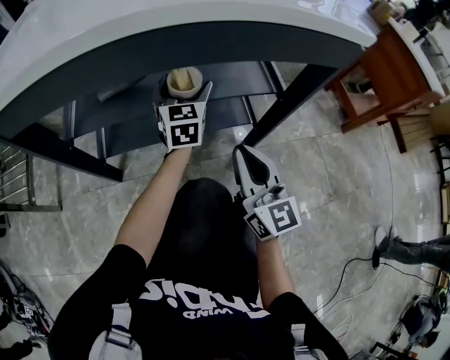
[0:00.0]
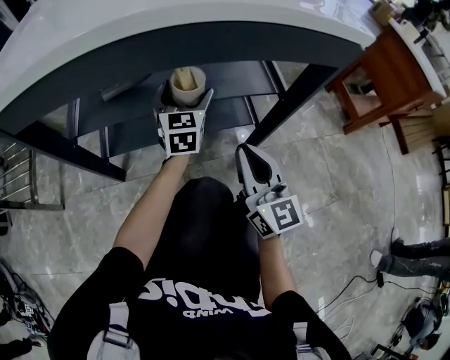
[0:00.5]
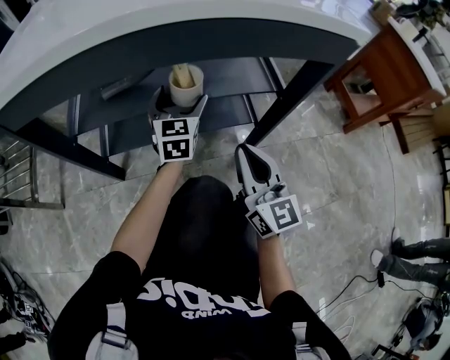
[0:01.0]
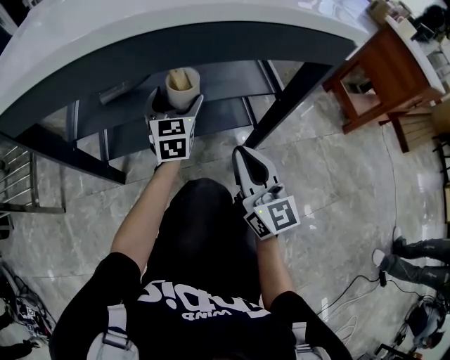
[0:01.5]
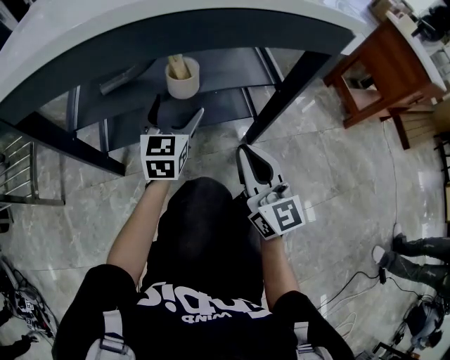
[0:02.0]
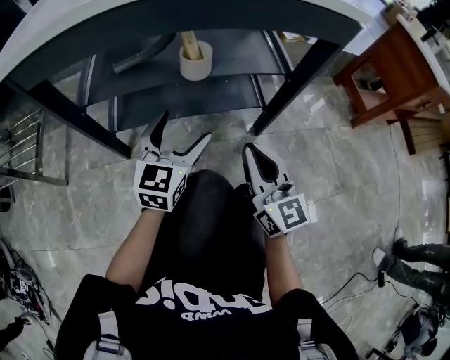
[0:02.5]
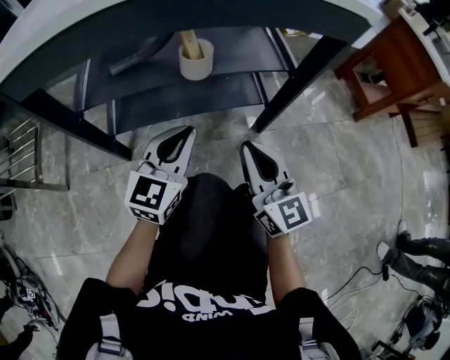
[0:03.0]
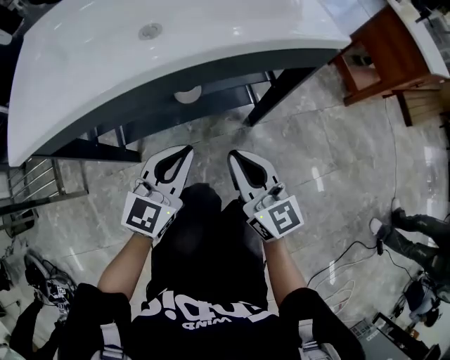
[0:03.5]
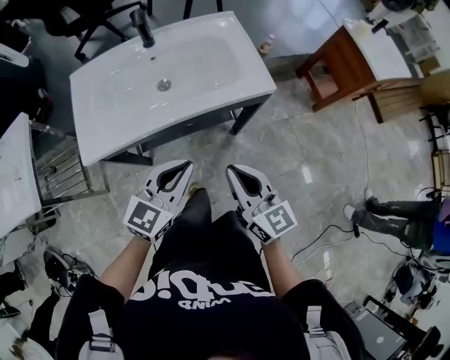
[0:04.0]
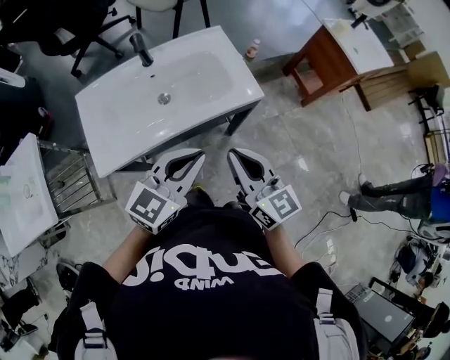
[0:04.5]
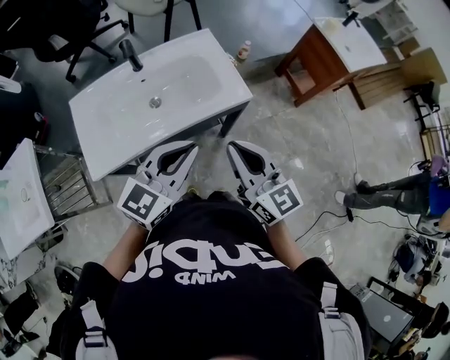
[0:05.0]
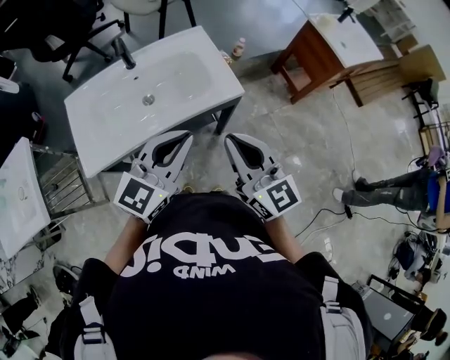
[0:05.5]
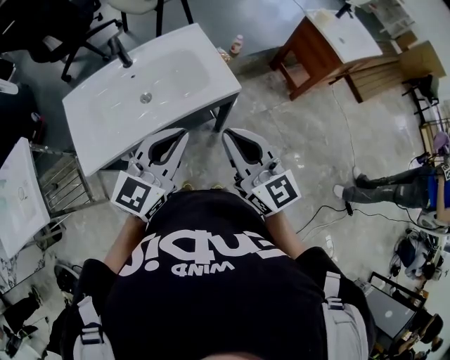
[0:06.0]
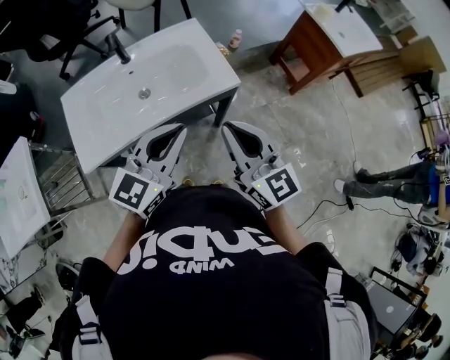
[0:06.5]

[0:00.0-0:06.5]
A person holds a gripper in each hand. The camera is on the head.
0:00.0 to 0:02.0: The left gripper travels backward by about 10 cm.
0:02.0 to 0:04.5: Both grippers move upward, some 50 cm. The left gripper turns by approximately 40 degrees, and closes its fingers.
0:04.5 to 0:06.5: The left gripper ends up about 5 cm from where it was, while the right gripper heads to the right, covering some 5 cm.

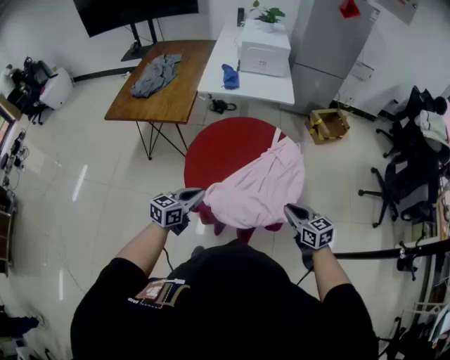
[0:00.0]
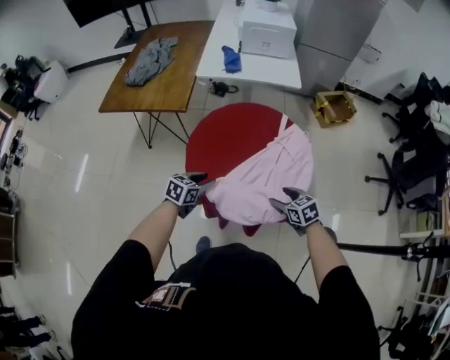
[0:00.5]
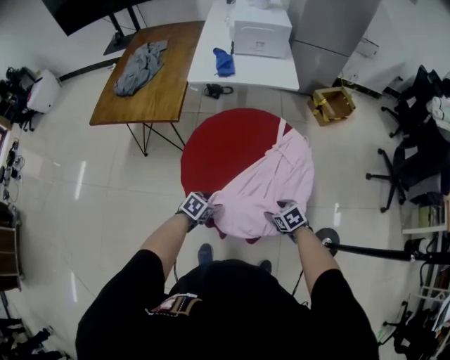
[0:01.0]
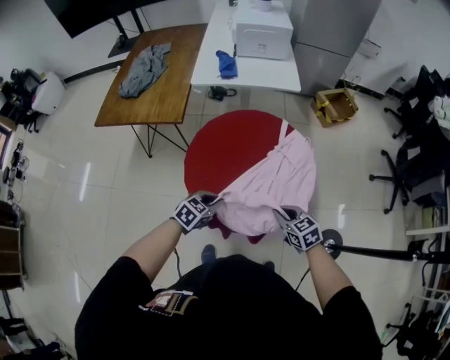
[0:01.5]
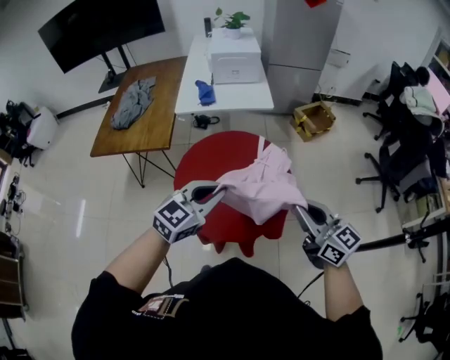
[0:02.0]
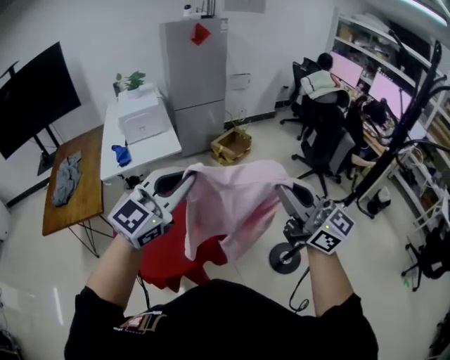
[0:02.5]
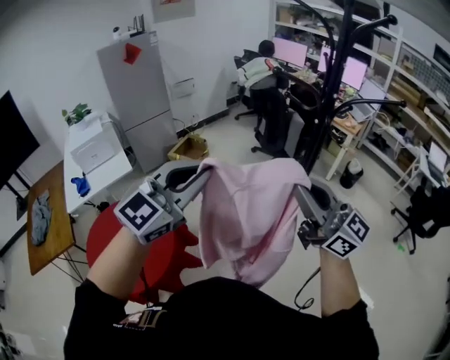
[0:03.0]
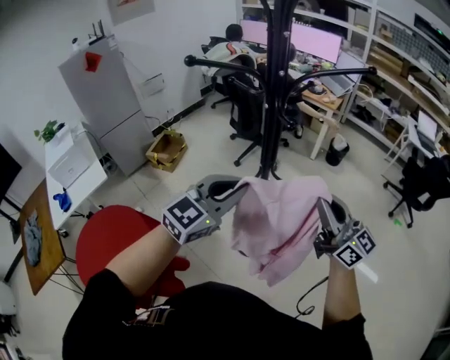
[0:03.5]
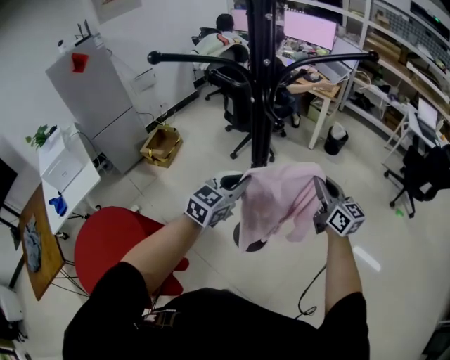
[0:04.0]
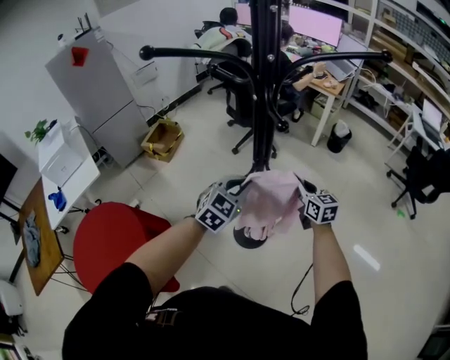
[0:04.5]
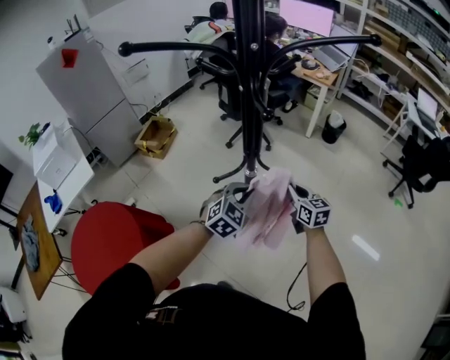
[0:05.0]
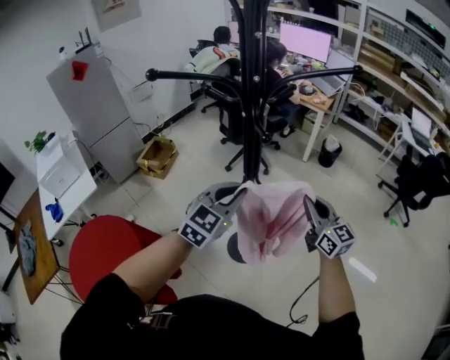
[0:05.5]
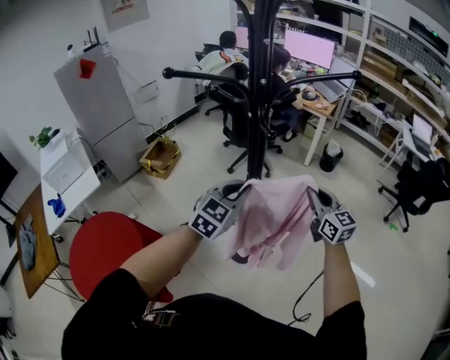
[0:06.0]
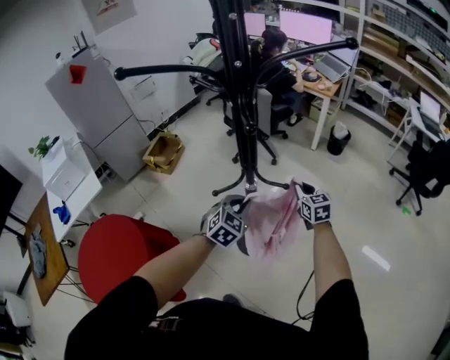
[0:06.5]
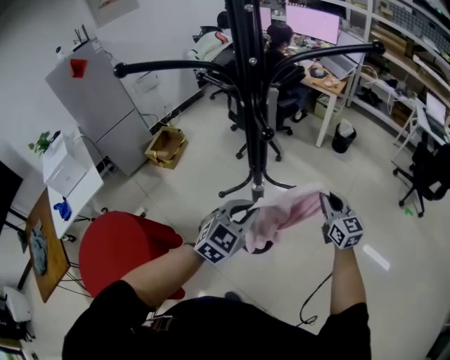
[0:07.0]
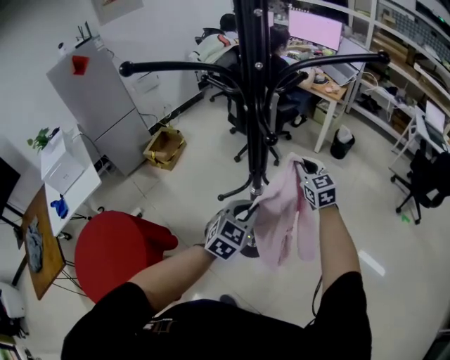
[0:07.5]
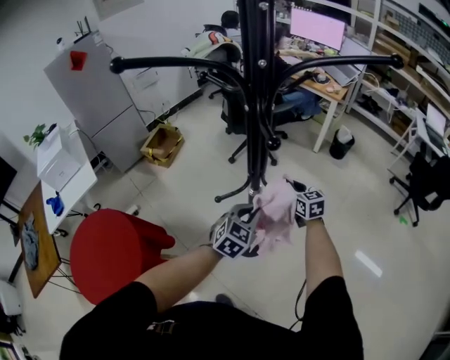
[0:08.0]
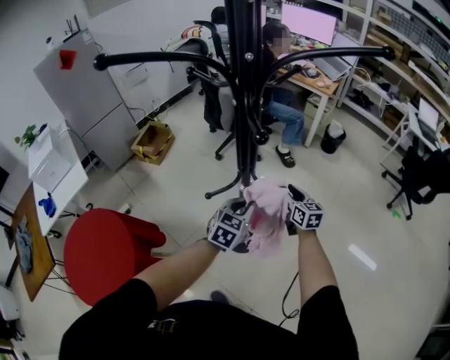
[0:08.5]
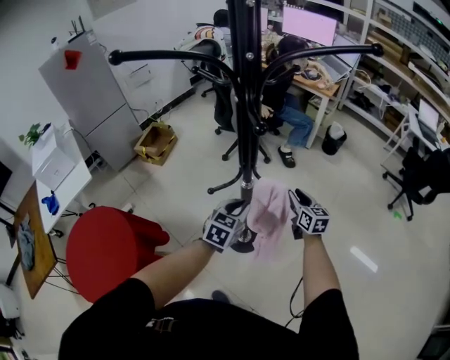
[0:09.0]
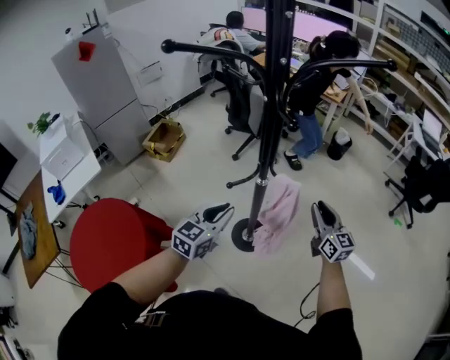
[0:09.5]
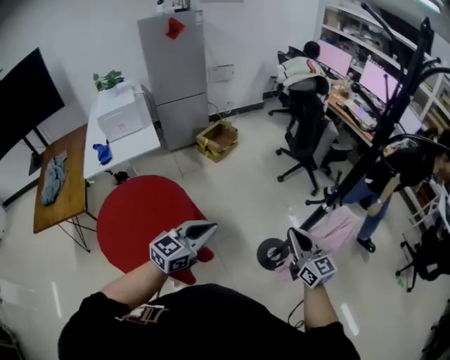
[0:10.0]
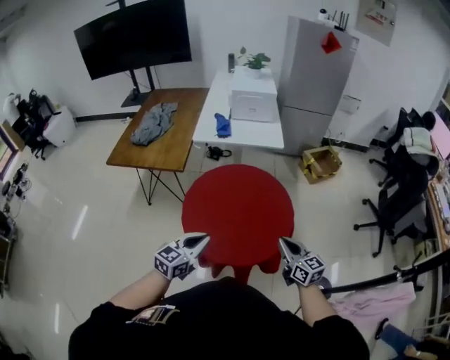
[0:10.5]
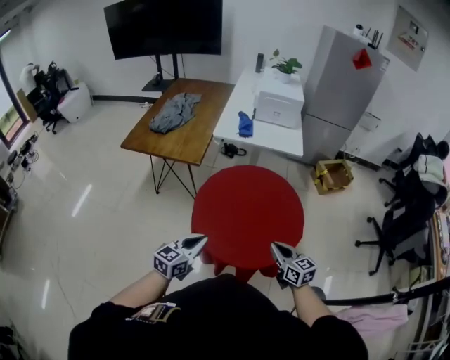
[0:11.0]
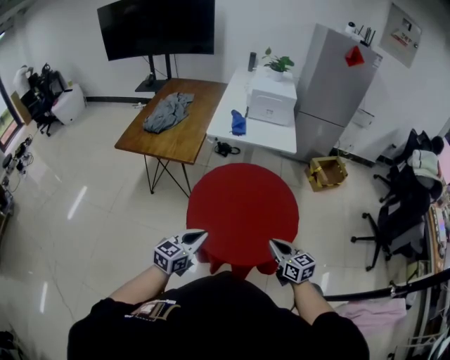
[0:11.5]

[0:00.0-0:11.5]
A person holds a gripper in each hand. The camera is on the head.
0:00.0 to 0:02.0: The left gripper moves upward and to the right, approximately 20 cm, swivels roughly 30 degrees, and opens and closes again; the right gripper moves upward, roughly 20 cm, rotates approximately 30 degrees, and opens, then closes again.
0:02.0 to 0:04.0: Both grippers are carried approximately 70 cm. The right gripper swivels approximately 70 degrees. The left gripper swivels about 40 degrees.
0:04.0 to 0:06.0: The right gripper reaches about 15 cm downward, then returns; the left gripper travels downward and back again, approximately 10 cm each way.
0:06.0 to 0:07.5: The right gripper heads forward, downward and to the left, covering roughly 20 cm, and rotates approximately 20 degrees. Meanwhile the left gripper heads downward, covering roughly 10 cm.
0:07.5 to 0:09.5: The right gripper heads backward and to the right, covering some 20 cm, and changes its angle by roughly 20 degrees. The left gripper is displaced to the left and backward by roughly 10 cm.
0:09.5 to 0:11.5: The two grippers travel together, some 80 cm. The left gripper changes its angle by approximately 60 degrees. The right gripper changes its angle by roughly 80 degrees, and closes its fingers.

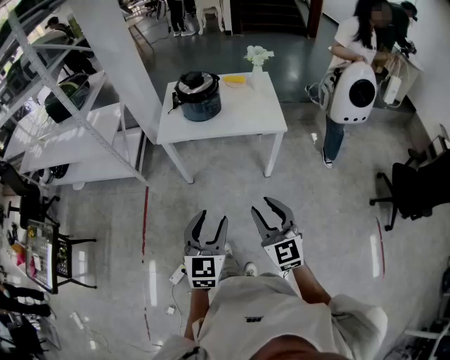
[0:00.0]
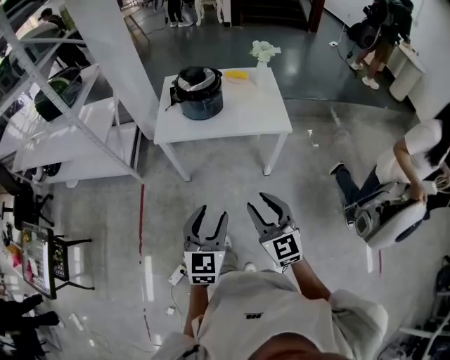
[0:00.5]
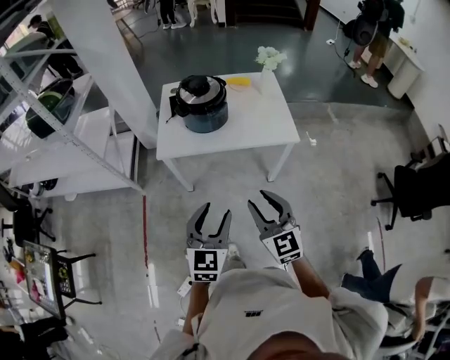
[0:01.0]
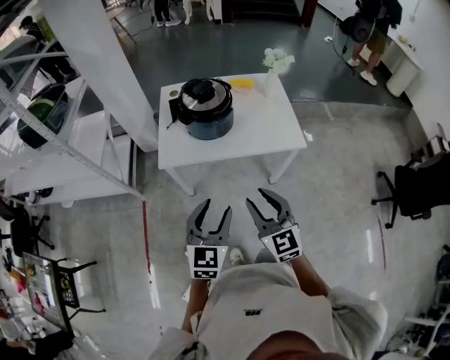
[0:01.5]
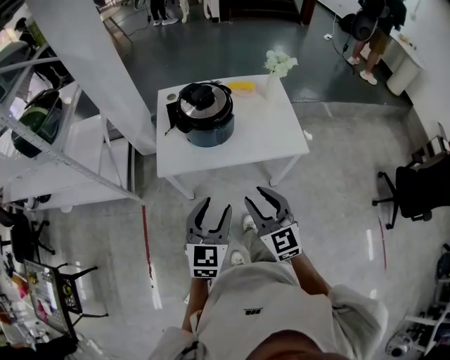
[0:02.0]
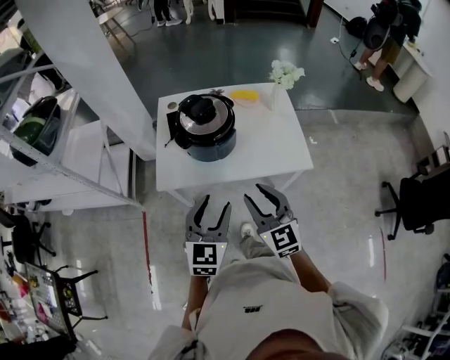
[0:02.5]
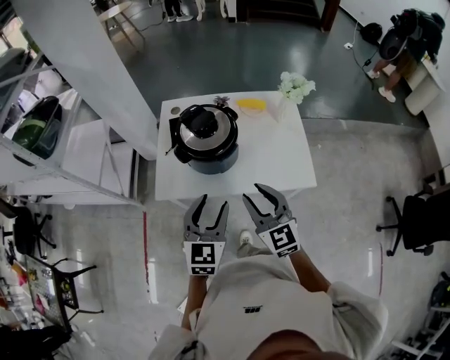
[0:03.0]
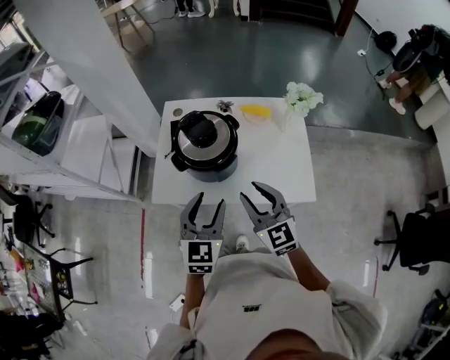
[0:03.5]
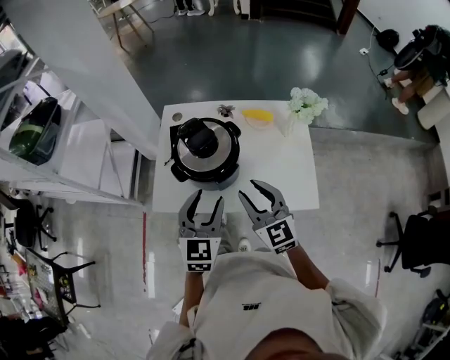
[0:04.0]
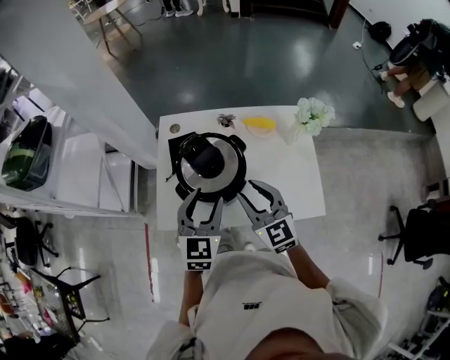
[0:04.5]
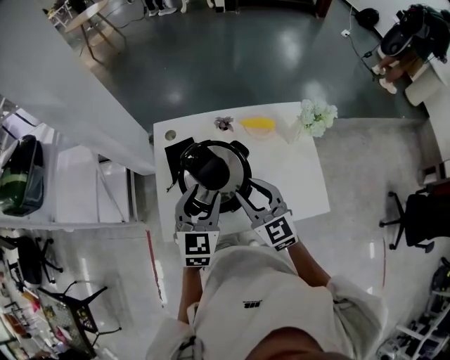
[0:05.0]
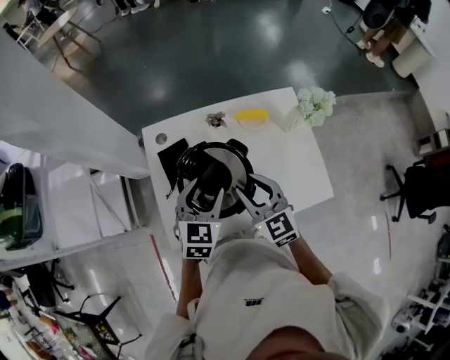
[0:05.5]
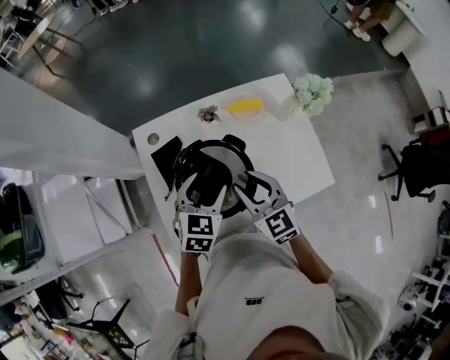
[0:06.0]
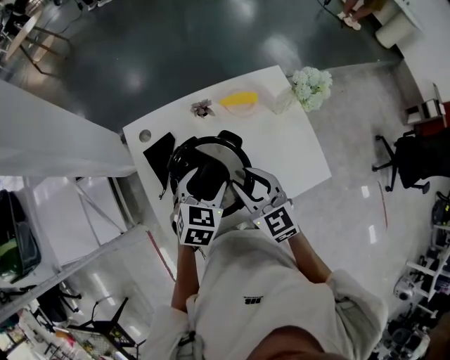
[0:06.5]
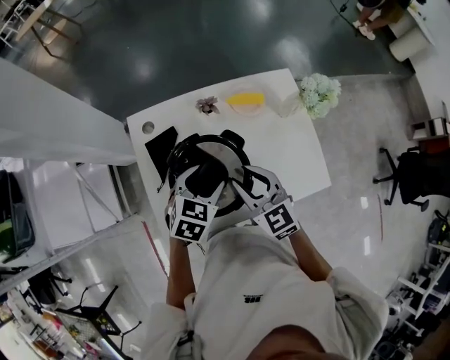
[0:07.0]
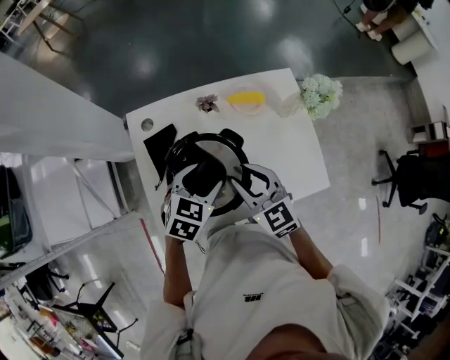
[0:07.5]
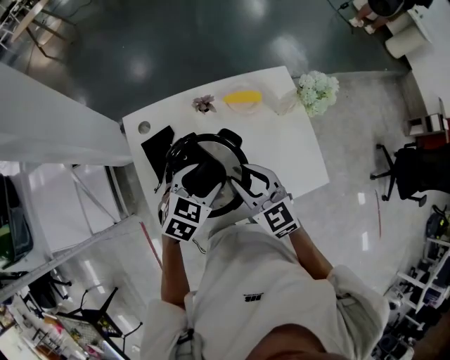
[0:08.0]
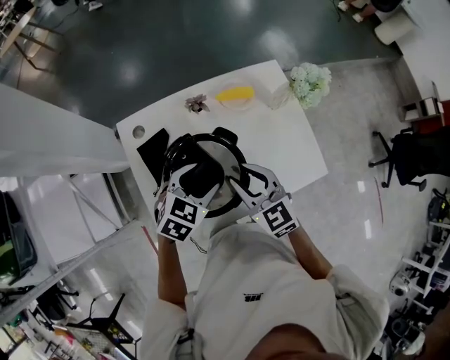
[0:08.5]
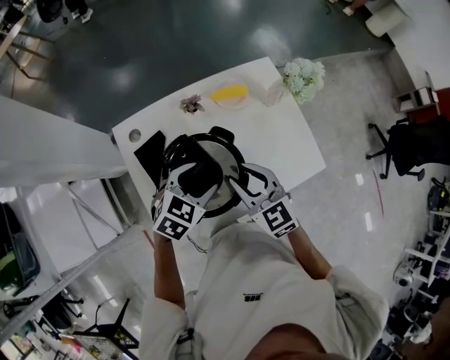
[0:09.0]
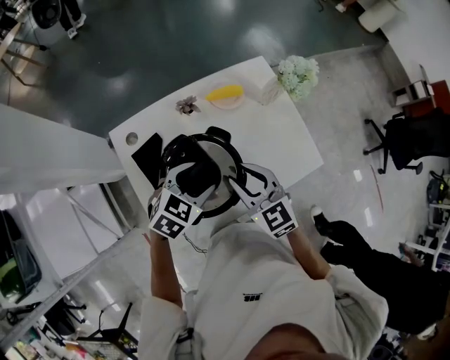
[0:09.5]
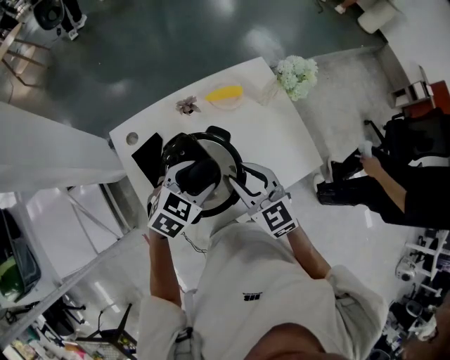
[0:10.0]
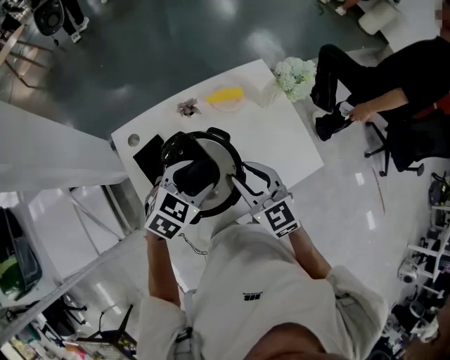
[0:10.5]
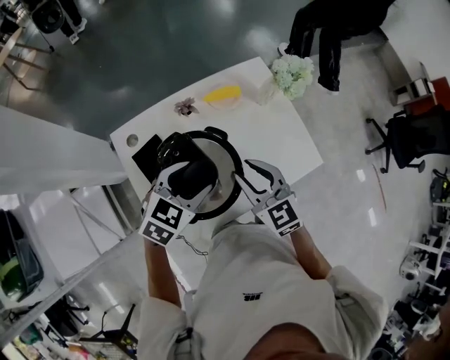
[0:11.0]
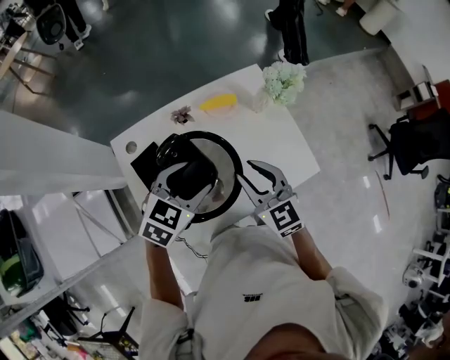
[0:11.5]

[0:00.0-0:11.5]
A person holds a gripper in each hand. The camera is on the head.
0:00.0 to 0:02.0: The grippers both shift forward by approximately 35 cm.
0:02.0 to 0:04.0: The grippers both shift forward by about 25 cm.
0:04.0 to 0:06.0: The left gripper heads forward, covering about 20 cm, and swivels roughly 30 degrees, while the right gripper moves forward and to the left, about 20 cm.
0:06.0 to 0:07.5: There are only small adjustments of the grippers.
0:07.5 to 0:09.5: The left gripper turns by roughly 20 degrees.
0:09.5 to 0:11.5: The right gripper shifts about 5 cm to the right; the left gripper is displaced upward by some 5 cm.
